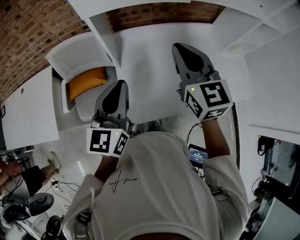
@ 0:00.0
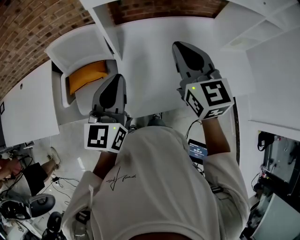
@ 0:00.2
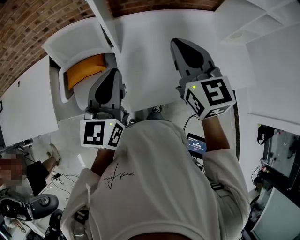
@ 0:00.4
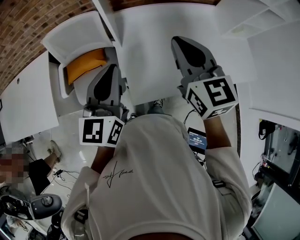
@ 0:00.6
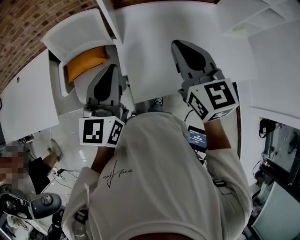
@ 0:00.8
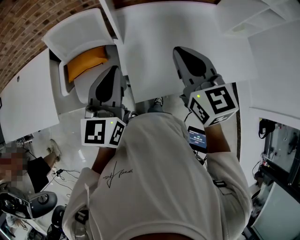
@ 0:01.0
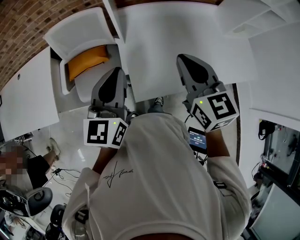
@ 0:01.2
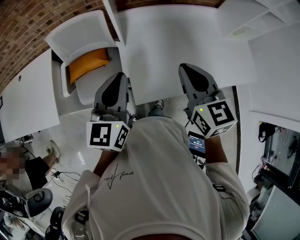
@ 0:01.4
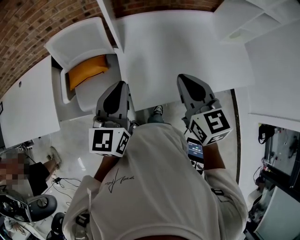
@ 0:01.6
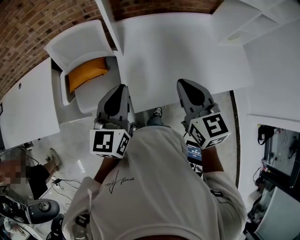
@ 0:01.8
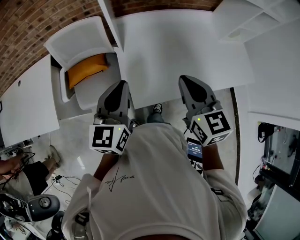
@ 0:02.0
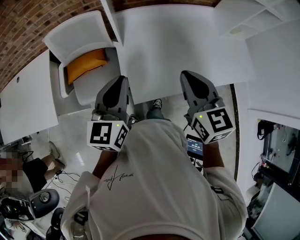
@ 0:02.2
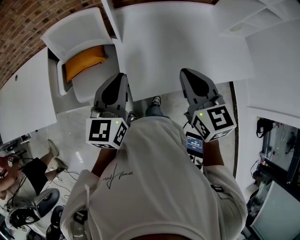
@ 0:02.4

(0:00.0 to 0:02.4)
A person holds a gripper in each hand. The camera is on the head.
0:00.0 - 0:01.2: The left gripper shifts about 5 cm to the left. The right gripper moves backward and downward, roughly 10 cm.
0:01.2 - 0:02.4: The grippers make only small movements.

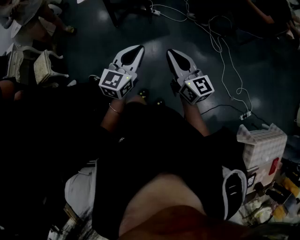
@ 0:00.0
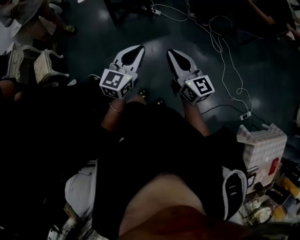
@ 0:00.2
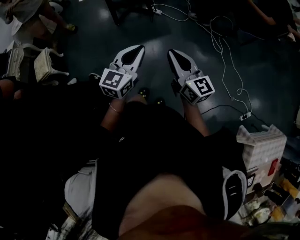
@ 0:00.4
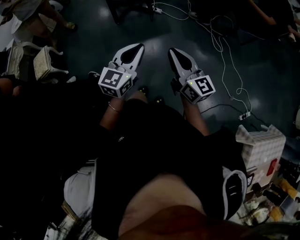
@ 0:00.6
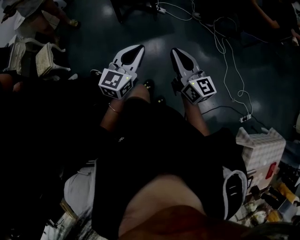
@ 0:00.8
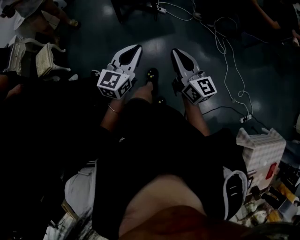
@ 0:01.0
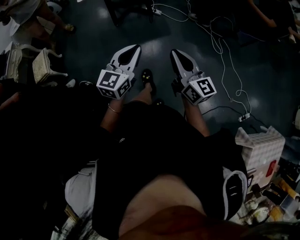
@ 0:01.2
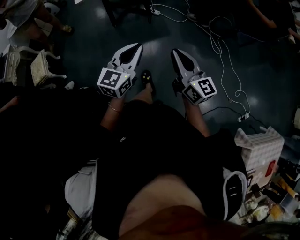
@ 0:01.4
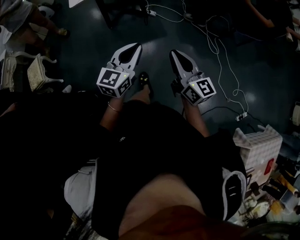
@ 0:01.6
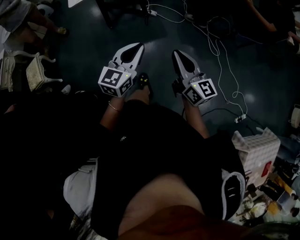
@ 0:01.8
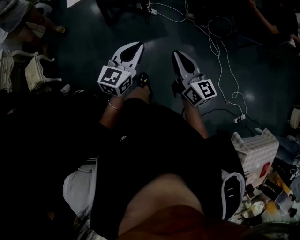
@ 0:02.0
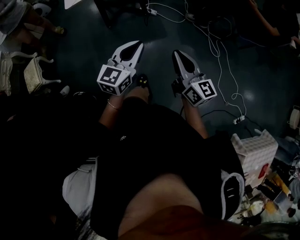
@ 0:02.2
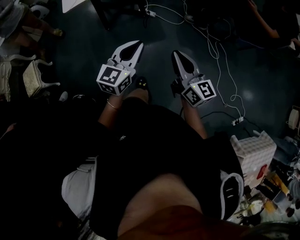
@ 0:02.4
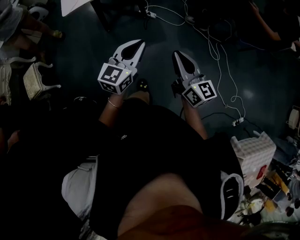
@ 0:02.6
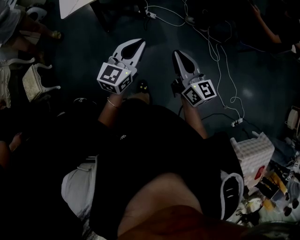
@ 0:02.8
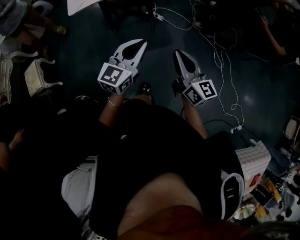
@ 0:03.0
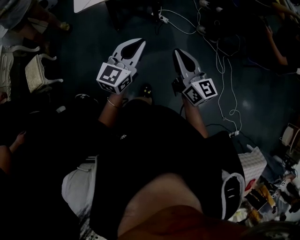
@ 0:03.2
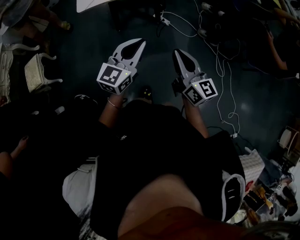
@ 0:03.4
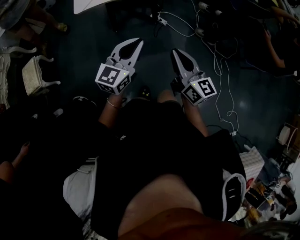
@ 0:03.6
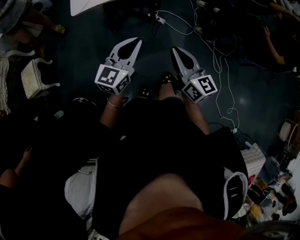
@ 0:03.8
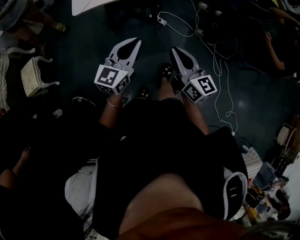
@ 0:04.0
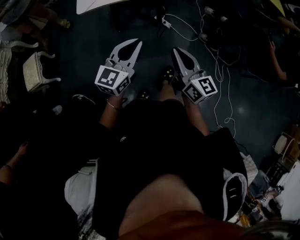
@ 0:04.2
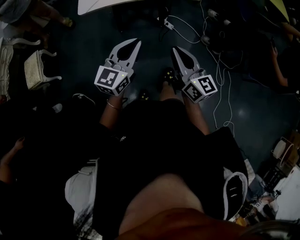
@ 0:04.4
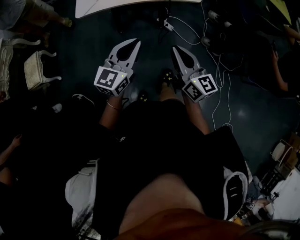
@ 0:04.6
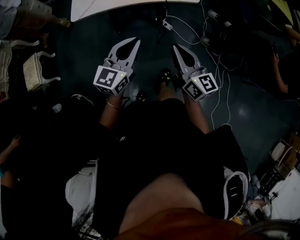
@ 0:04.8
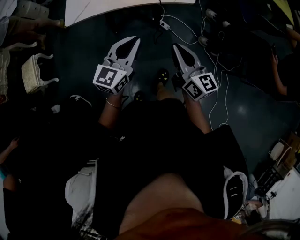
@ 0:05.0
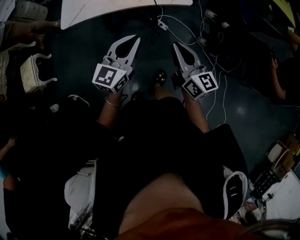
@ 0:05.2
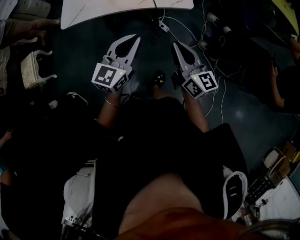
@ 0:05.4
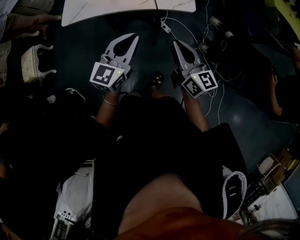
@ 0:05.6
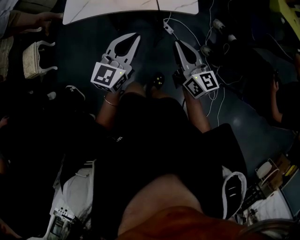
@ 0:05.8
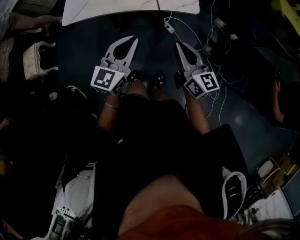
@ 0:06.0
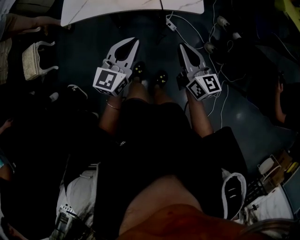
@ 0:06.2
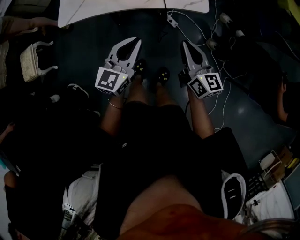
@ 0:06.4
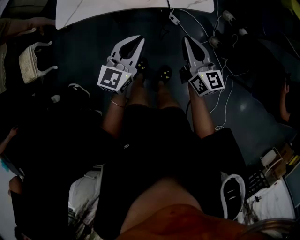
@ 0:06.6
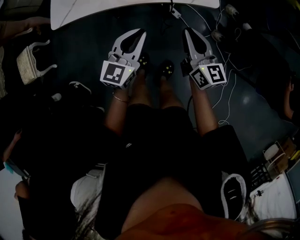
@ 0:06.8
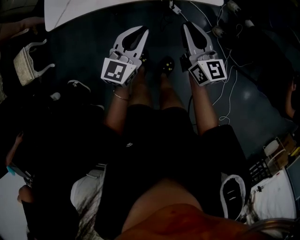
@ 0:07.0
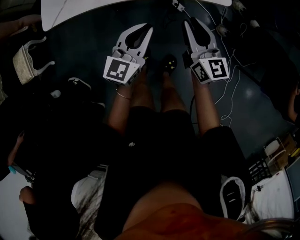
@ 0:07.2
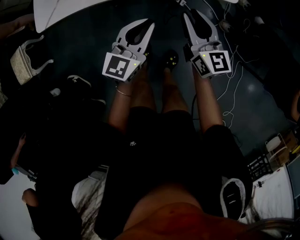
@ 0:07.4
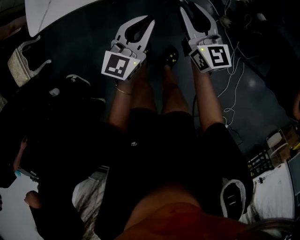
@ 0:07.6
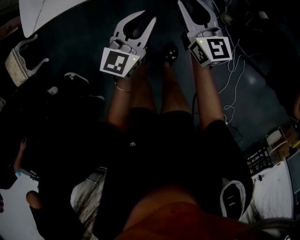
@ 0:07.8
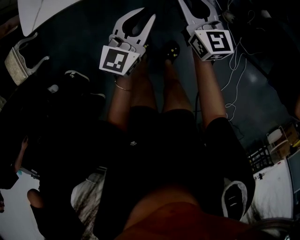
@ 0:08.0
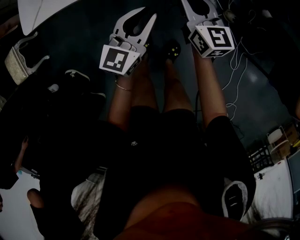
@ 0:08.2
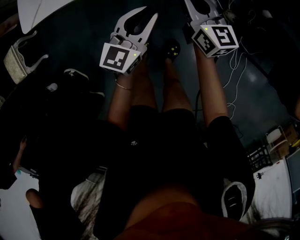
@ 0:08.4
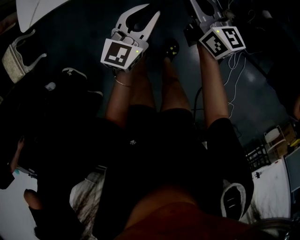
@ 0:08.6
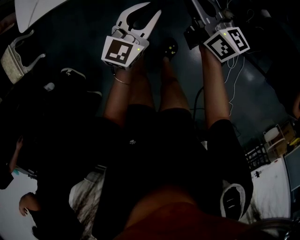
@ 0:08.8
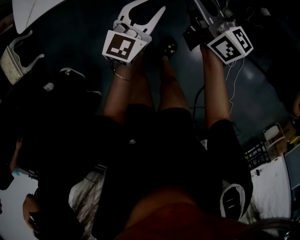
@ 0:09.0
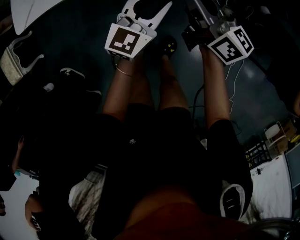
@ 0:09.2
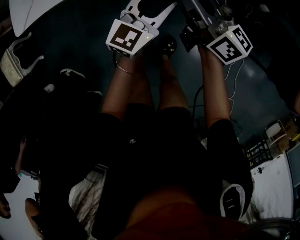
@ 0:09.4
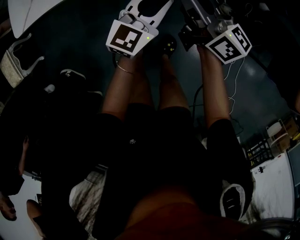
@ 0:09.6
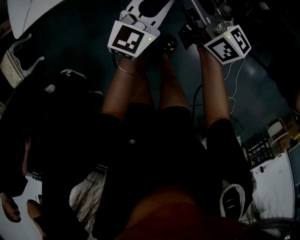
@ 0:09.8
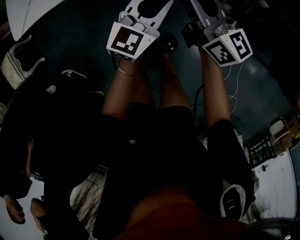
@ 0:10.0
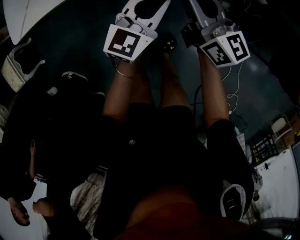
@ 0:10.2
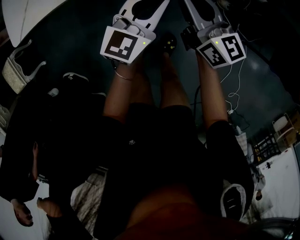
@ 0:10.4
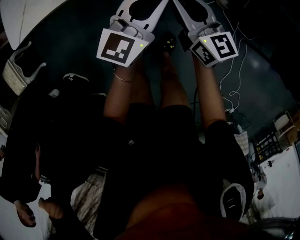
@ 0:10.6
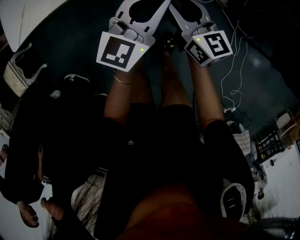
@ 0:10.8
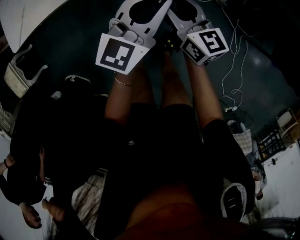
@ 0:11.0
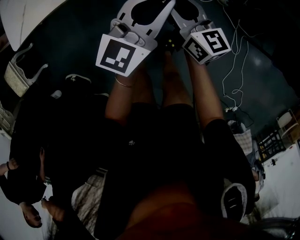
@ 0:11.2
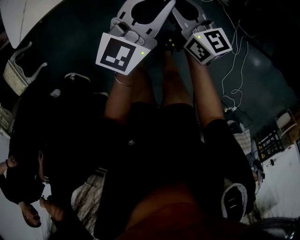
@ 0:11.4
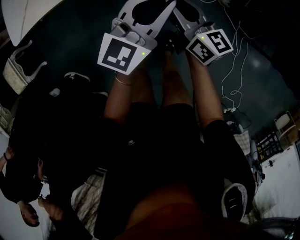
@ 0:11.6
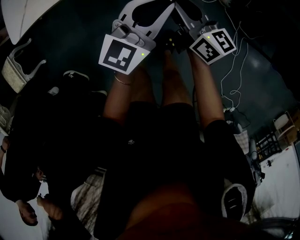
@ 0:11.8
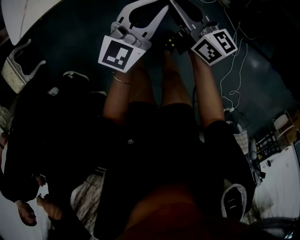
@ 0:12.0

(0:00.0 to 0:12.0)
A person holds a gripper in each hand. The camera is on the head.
0:00.0 - 0:01.6: Both grippers move forward, roughly 10 cm.
0:01.6 - 0:03.0: Both grippers move forward, roughly 20 cm.
0:03.0 - 0:04.4: Both grippers travel together forward and to the left, some 15 cm.
0:04.4 - 0:06.0: Both grippers move forward and to the right, roughly 20 cm.
0:06.0 - 0:07.6: The right gripper travels downward, forward and to the left by about 20 cm, and opens up. The left gripper goes approximately 20 cm downward and forward.
0:07.6 - 0:09.0: The right gripper rotates some 30 degrees.
0:09.0 - 0:10.4: The left gripper moves some 5 cm.
0:10.4 - 0:12.0: The grippers make only small movements.

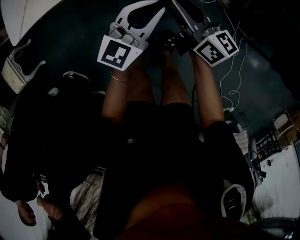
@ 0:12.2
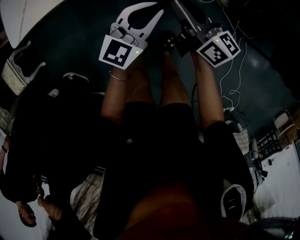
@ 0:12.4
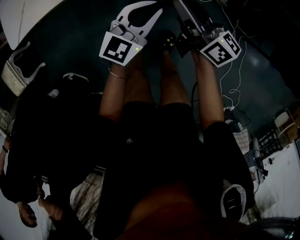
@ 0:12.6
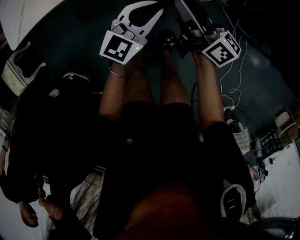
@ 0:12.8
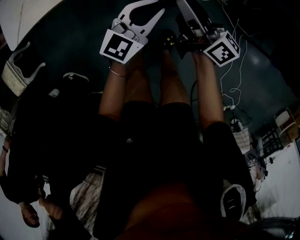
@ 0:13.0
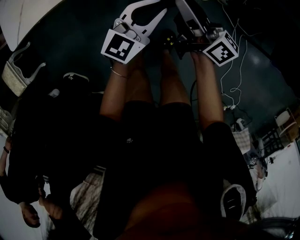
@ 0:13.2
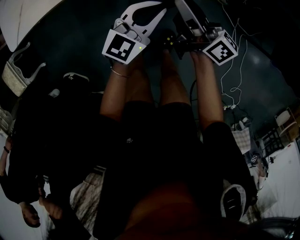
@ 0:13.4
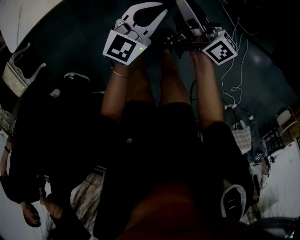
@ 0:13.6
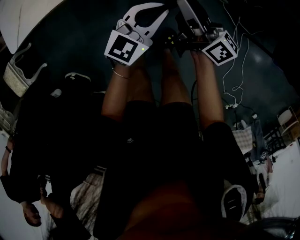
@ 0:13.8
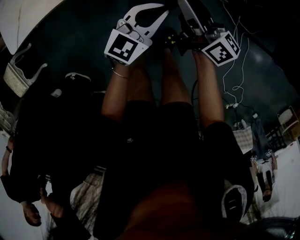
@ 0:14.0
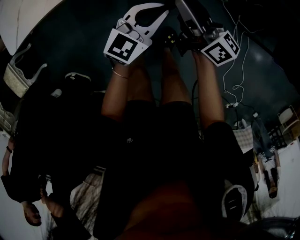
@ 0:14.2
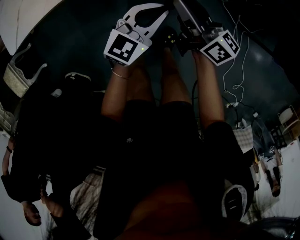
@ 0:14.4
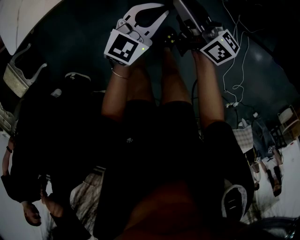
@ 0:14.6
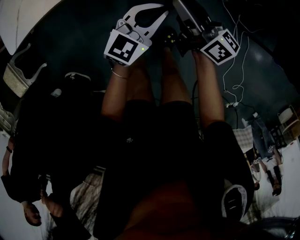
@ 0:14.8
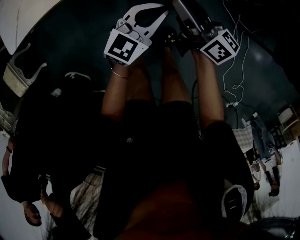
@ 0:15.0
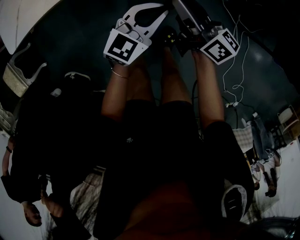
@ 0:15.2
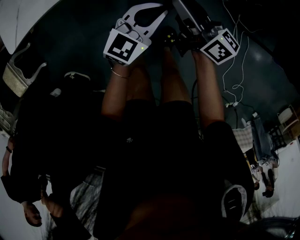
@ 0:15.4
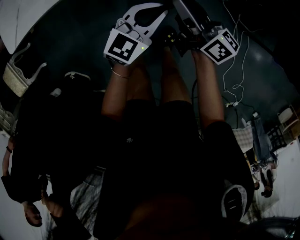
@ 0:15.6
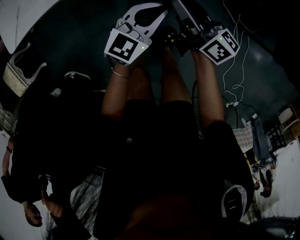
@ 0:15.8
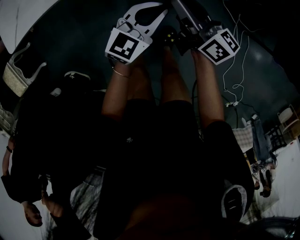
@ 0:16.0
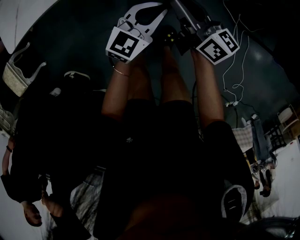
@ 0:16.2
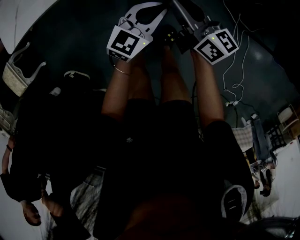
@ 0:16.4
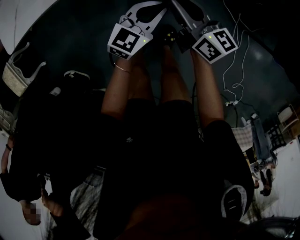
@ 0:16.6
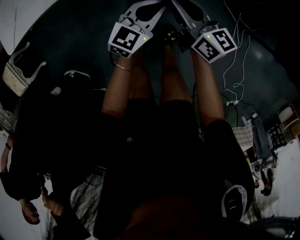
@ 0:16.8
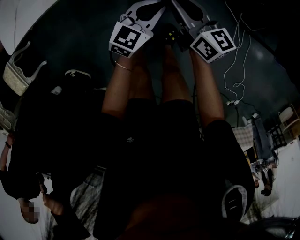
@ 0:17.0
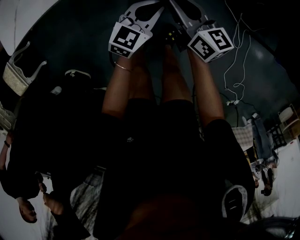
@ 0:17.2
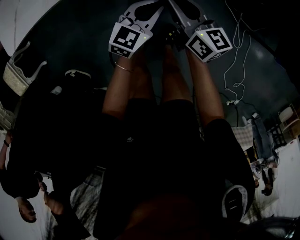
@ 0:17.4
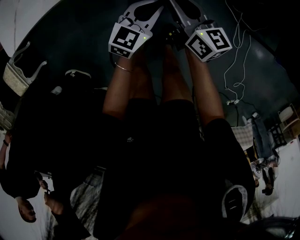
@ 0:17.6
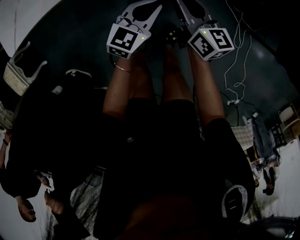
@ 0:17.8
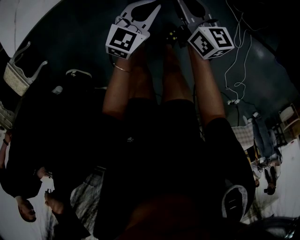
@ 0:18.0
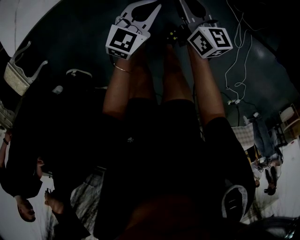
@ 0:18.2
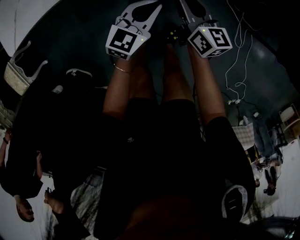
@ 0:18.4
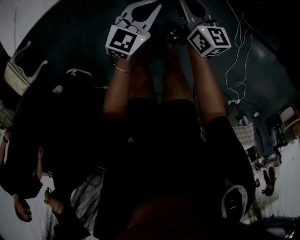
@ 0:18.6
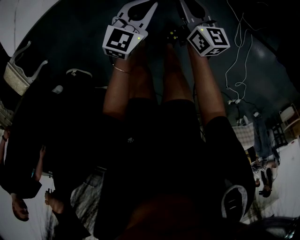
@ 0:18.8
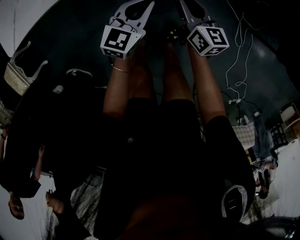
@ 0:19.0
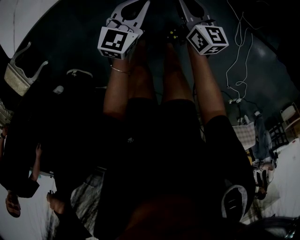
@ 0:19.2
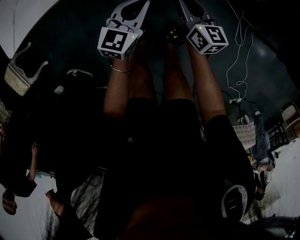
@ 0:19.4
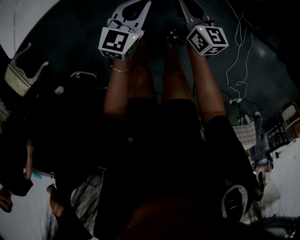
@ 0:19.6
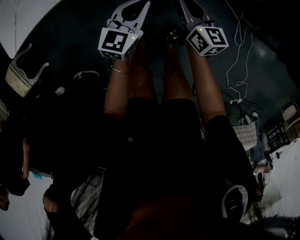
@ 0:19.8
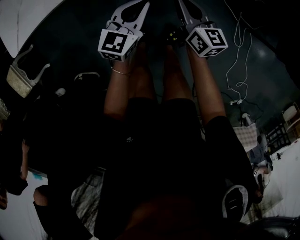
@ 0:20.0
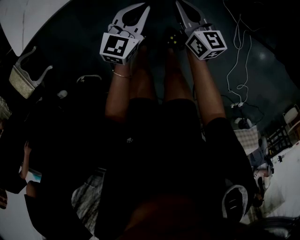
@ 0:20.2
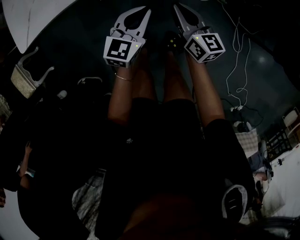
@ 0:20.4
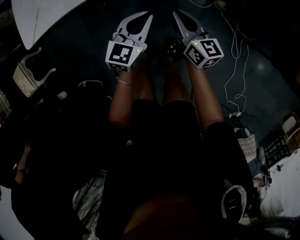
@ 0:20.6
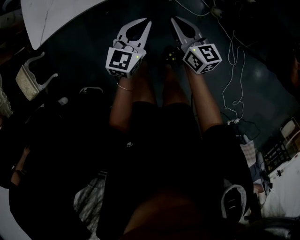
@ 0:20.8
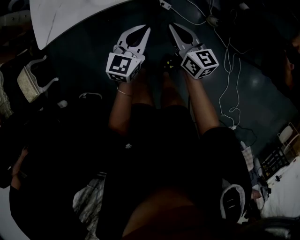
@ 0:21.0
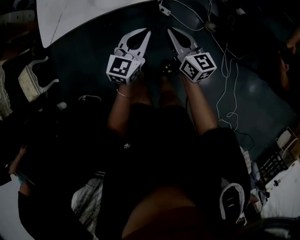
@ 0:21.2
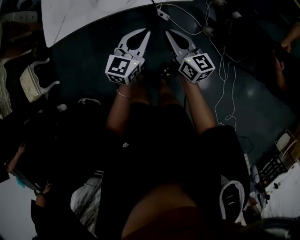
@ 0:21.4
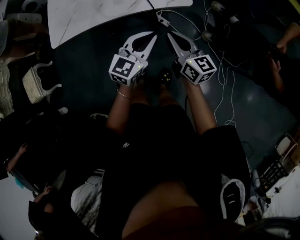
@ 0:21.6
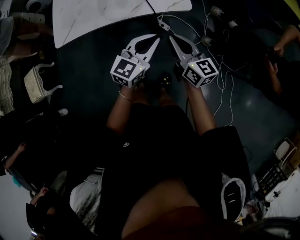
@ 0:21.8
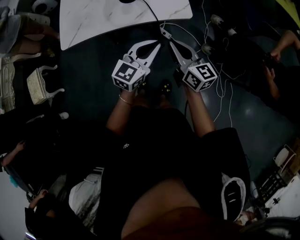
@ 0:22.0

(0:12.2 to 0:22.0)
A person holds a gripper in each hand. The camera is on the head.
0:12.2 - 0:13.6: The right gripper rotates approximately 20 degrees.
0:13.6 - 0:15.0: There are only small adjustments of the grippers.
0:15.0 - 0:16.4: The grippers make only small movements.
0:16.4 - 0:17.8: There are only small adjustments of the grippers.
0:17.8 - 0:19.2: The grippers stay close to where they were, moving slightly.
0:19.2 - 0:20.6: The grippers both shift upward by some 5 cm.
0:20.6 - 0:22.0: The two grippers go approximately 20 cm upward.
